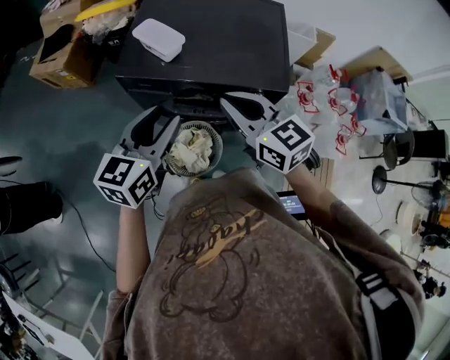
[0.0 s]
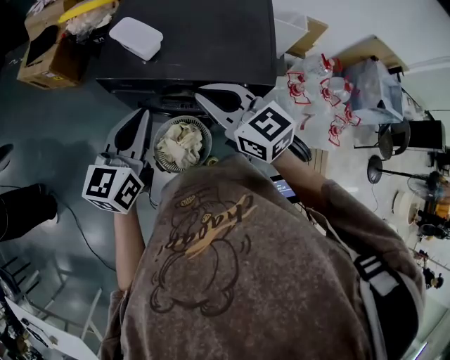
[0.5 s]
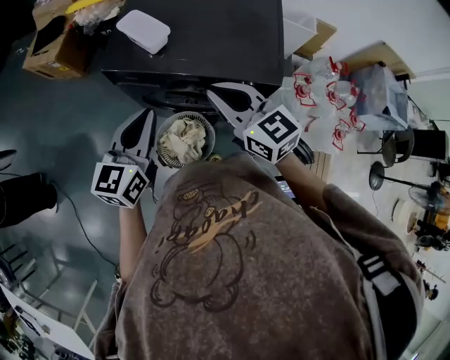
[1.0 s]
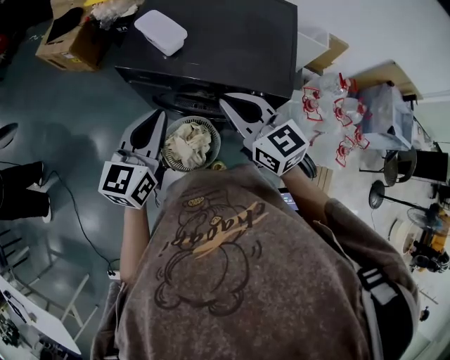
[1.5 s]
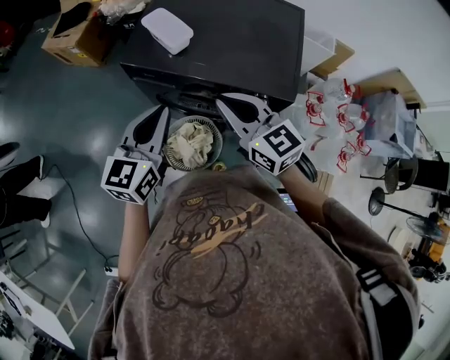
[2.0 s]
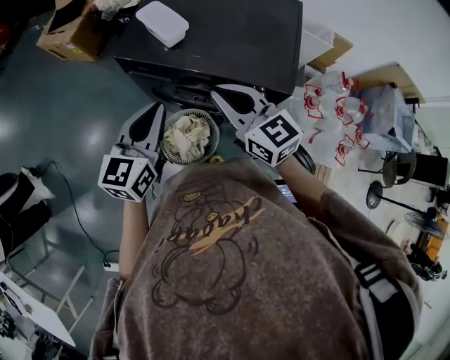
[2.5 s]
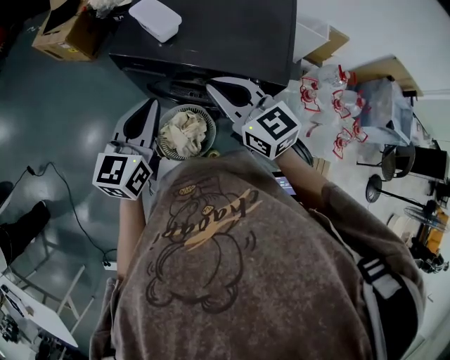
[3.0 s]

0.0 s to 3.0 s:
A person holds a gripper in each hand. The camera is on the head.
0.0 to 1.5 s: The left gripper closes up.
1.5 to 3.0 s: The grippers stay close to where they were, moving slightly.

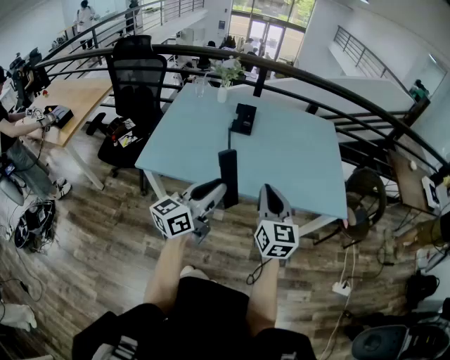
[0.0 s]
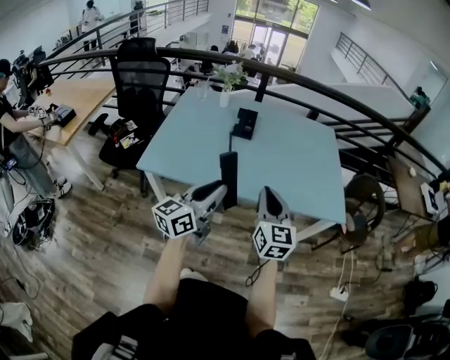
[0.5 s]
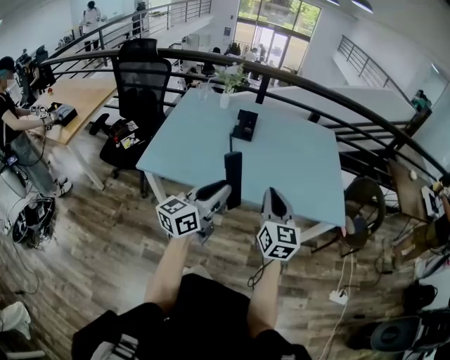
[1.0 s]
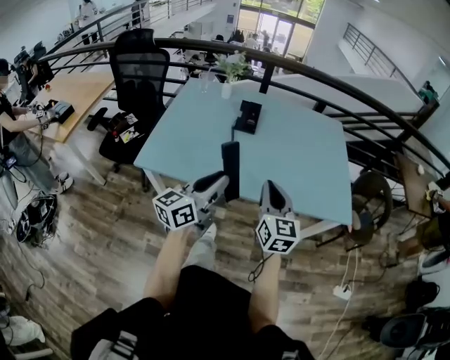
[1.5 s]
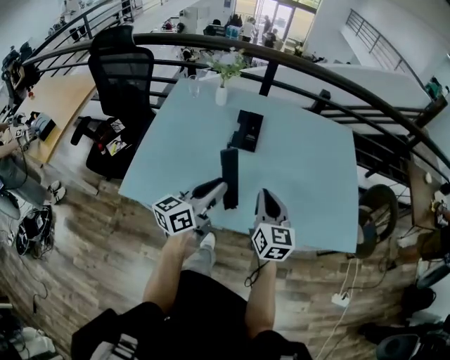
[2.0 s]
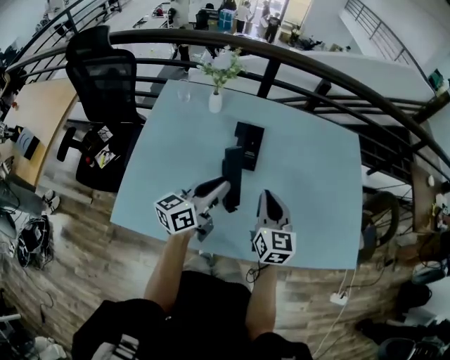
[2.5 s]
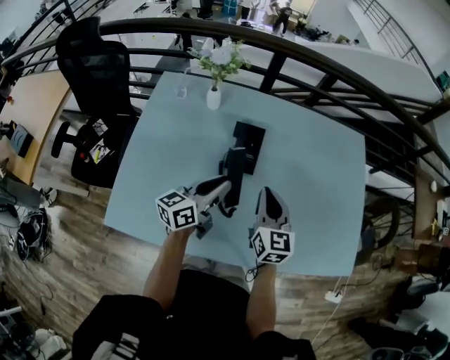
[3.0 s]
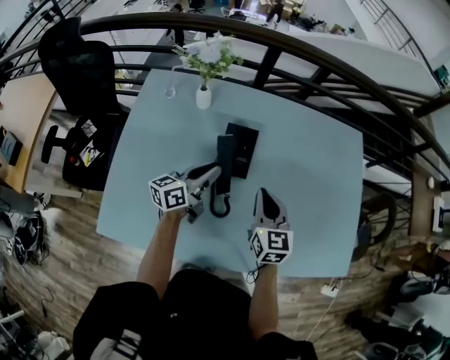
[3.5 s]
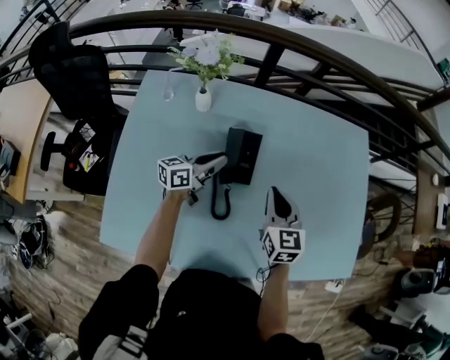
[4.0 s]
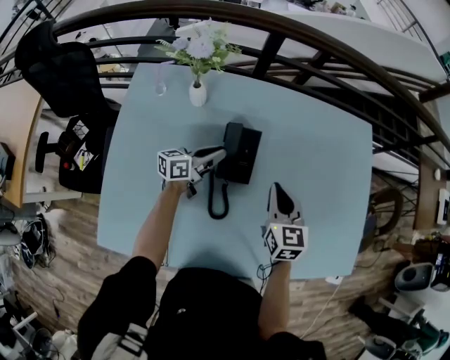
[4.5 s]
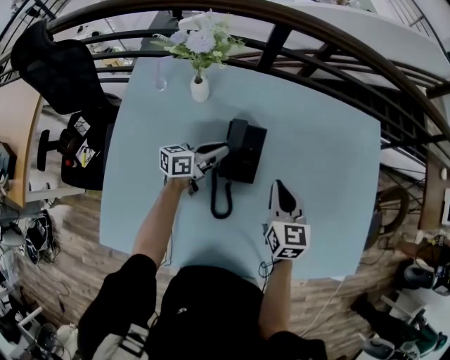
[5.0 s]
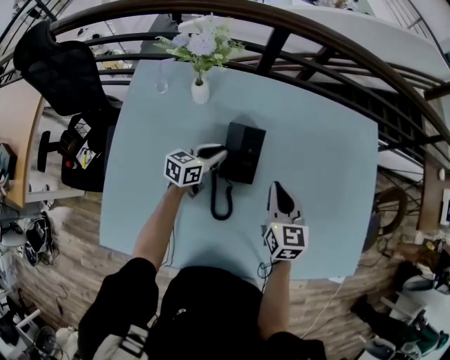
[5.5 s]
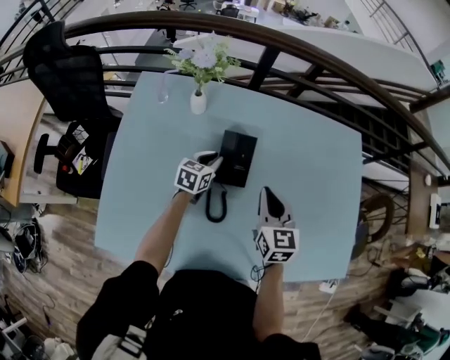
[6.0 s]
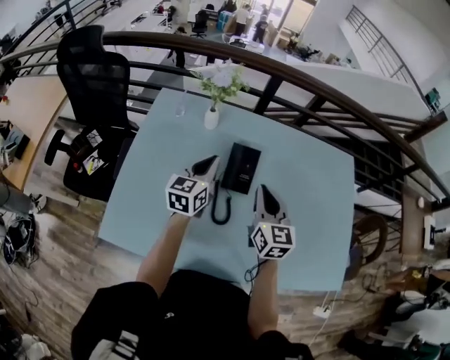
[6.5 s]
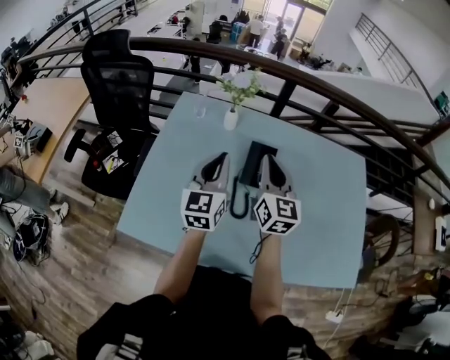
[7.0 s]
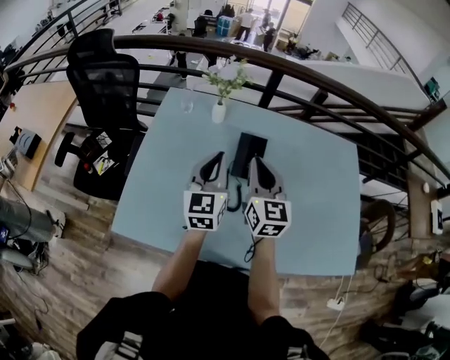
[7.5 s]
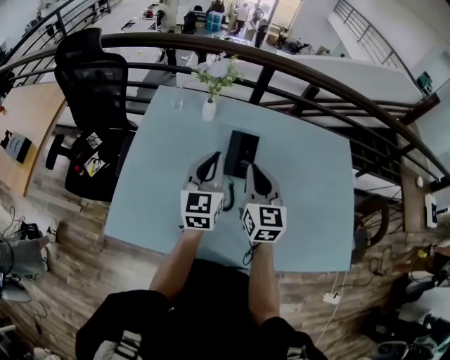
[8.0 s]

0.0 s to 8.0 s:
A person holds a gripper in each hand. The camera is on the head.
0.0 to 2.0 s: The right gripper goes approximately 25 cm forward and downward, while the left gripper shifts some 25 cm forward.
2.0 to 4.0 s: The right gripper moves forward, some 25 cm, while the left gripper is displaced forward and downward by some 35 cm, and rotates about 20 degrees.
4.0 to 6.0 s: The left gripper goes some 10 cm downward, and turns by approximately 40 degrees.
6.0 to 8.0 s: The left gripper travels upward and backward by some 30 cm, and swivels approximately 40 degrees. The right gripper goes some 15 cm upward and to the left.

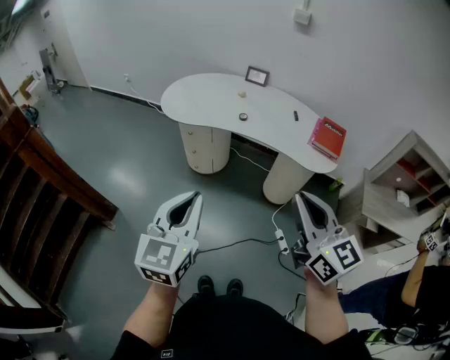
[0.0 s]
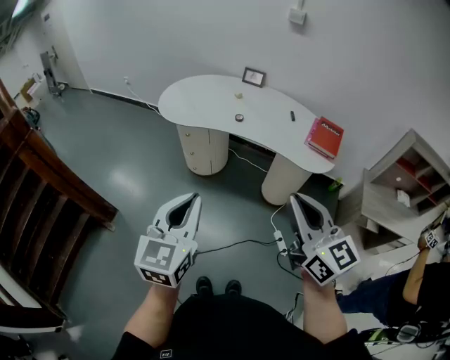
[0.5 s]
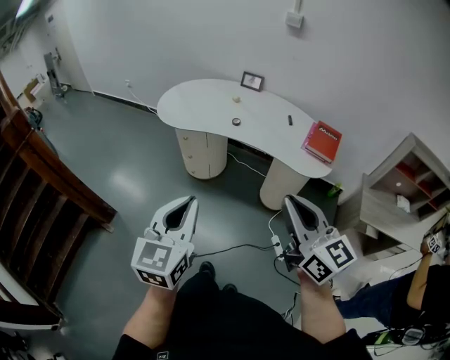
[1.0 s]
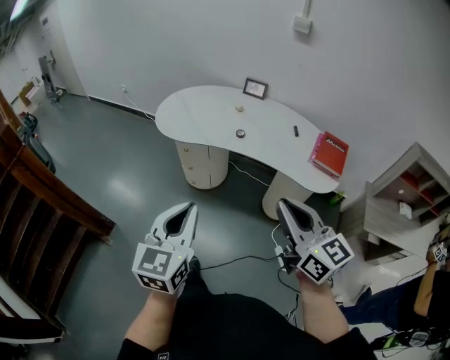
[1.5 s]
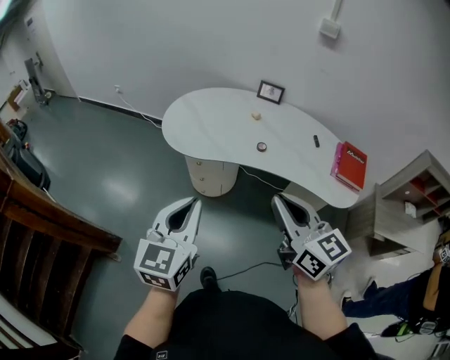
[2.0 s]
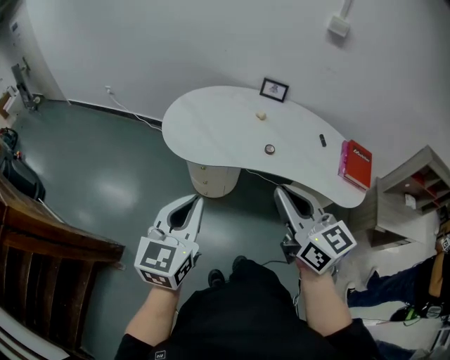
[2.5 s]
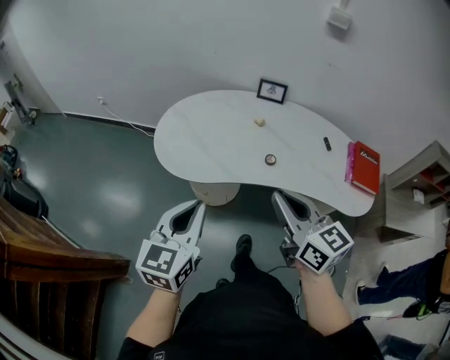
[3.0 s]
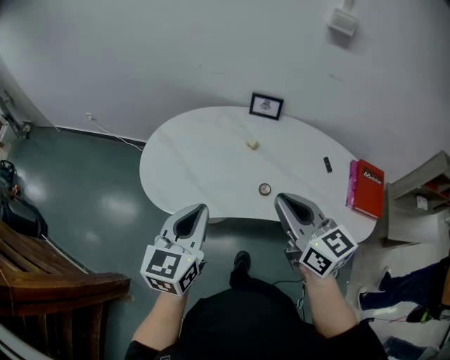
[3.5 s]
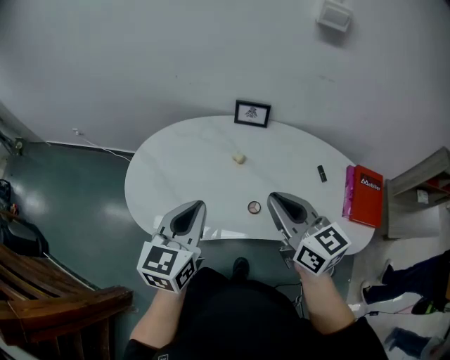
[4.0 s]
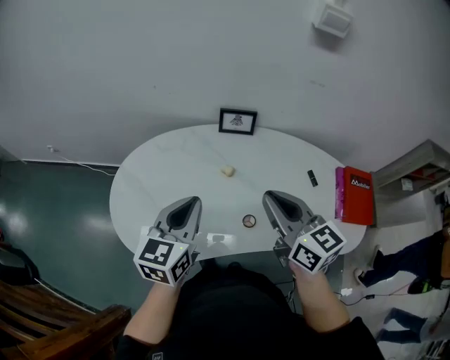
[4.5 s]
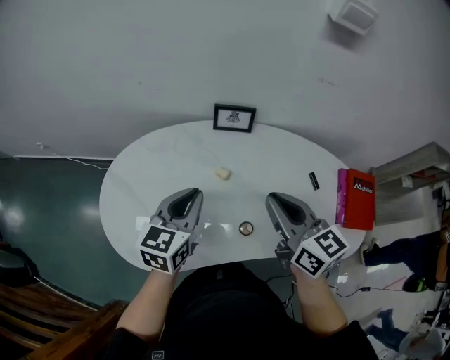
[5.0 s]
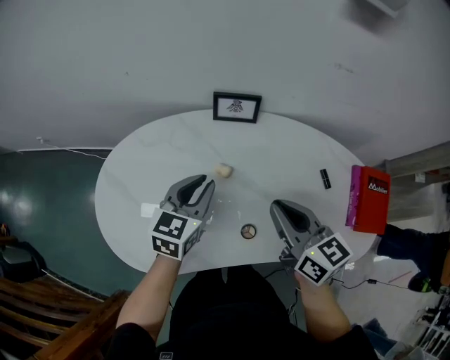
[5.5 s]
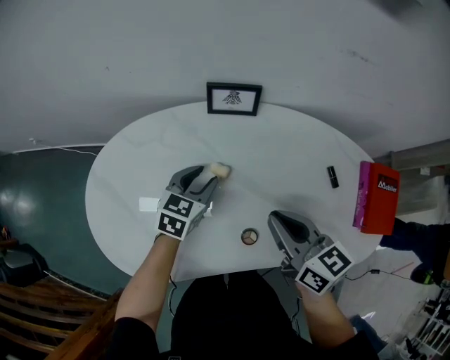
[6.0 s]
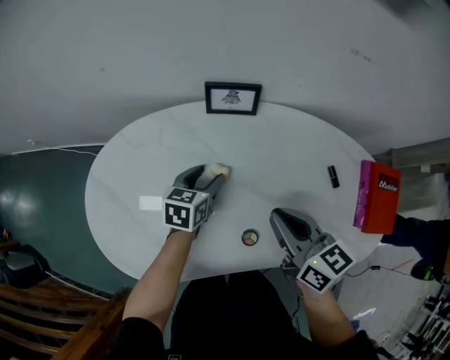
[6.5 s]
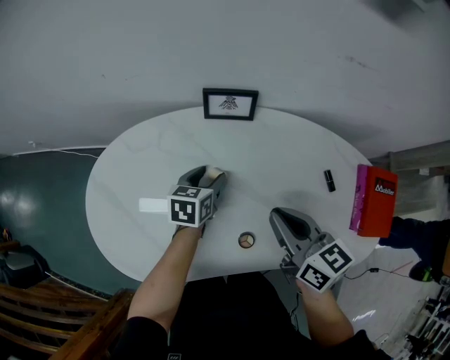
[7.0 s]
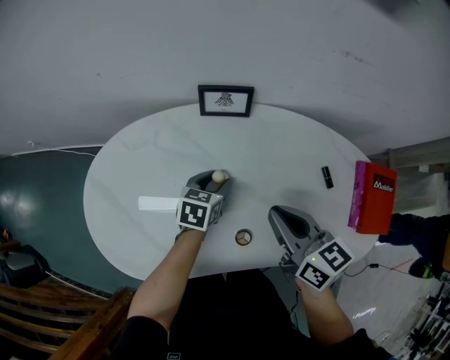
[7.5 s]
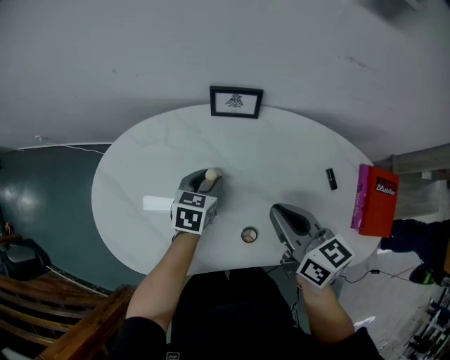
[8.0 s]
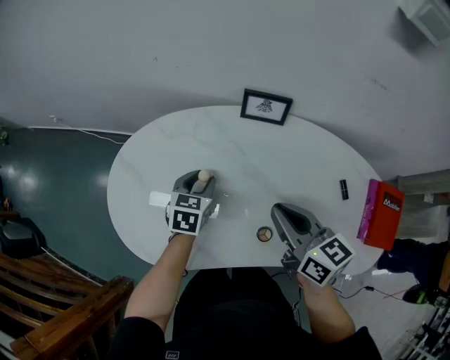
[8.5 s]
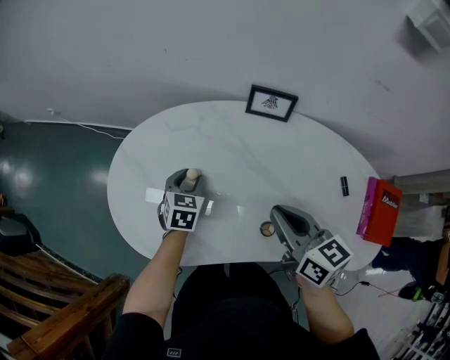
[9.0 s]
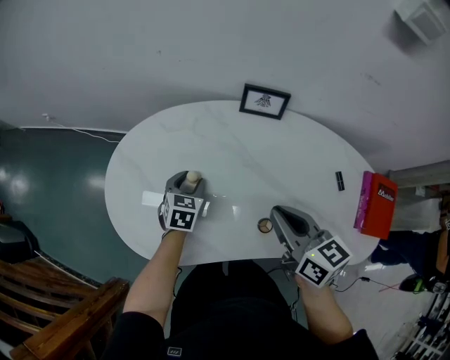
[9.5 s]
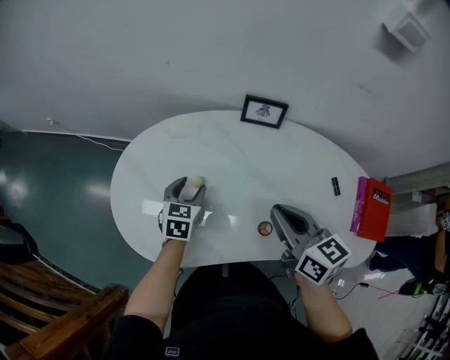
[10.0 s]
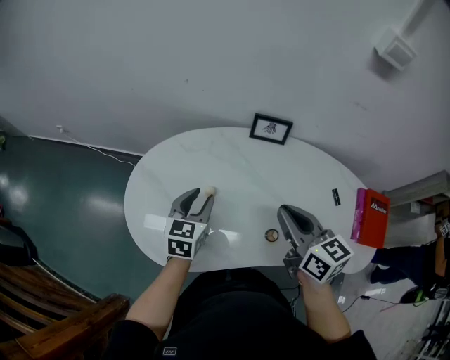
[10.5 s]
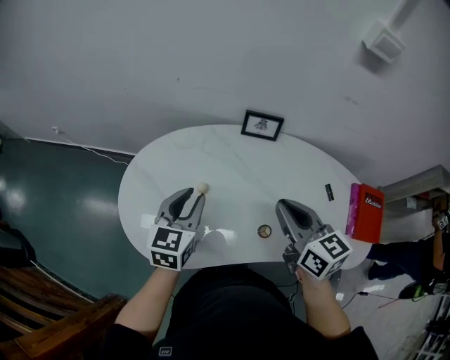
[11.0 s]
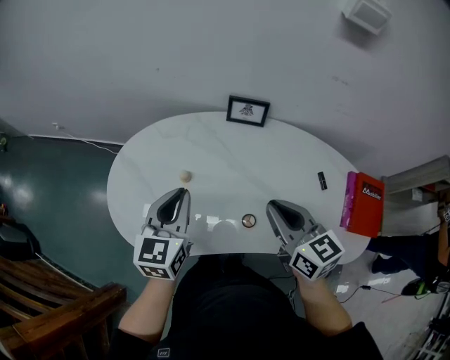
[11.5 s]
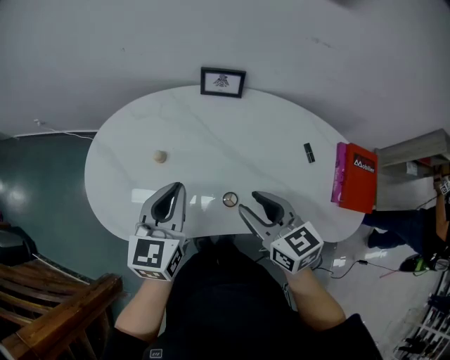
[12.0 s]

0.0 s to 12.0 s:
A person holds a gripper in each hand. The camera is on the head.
0.0 to 2.0 s: The right gripper goes approximately 30 cm forward and to the left; the left gripper is displaced forward by approximately 25 cm.
2.0 to 4.0 s: Both grippers travel together forward, about 40 cm.
4.0 to 6.0 s: The left gripper goes roughly 35 cm forward and downward, swivels about 30 degrees, and opens up; the right gripper shifts some 20 cm downward and forward, and turns by some 20 degrees.
8.0 to 10.0 s: The right gripper goes roughly 10 cm to the left. Meanwhile the left gripper moves to the left, approximately 15 cm.
10.0 to 12.0 s: The left gripper shifts approximately 20 cm upward, backward and to the right, turns by about 20 degrees, and closes its fingers. Meanwhile the right gripper is displaced backward by approximately 10 cm, and opens up.

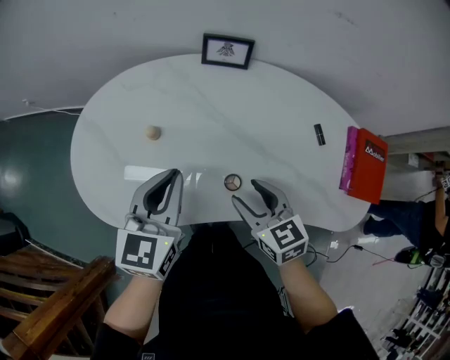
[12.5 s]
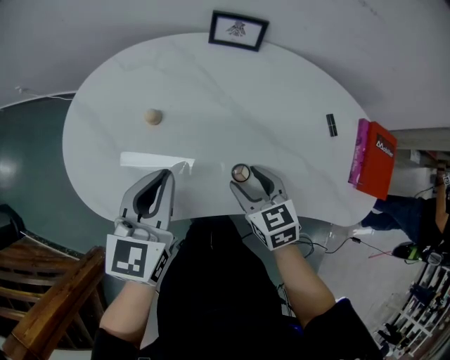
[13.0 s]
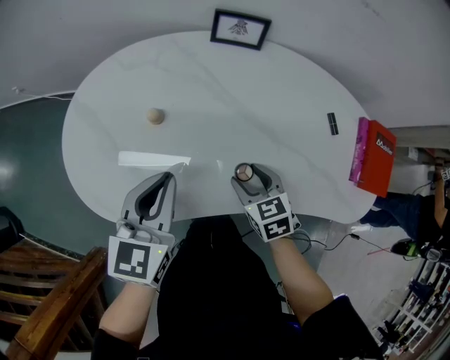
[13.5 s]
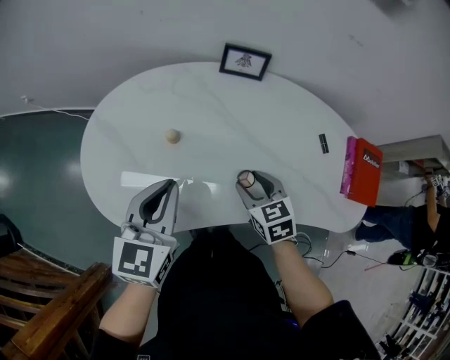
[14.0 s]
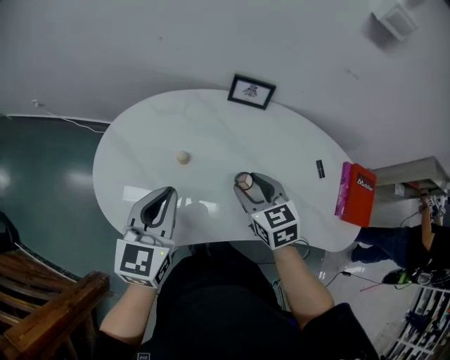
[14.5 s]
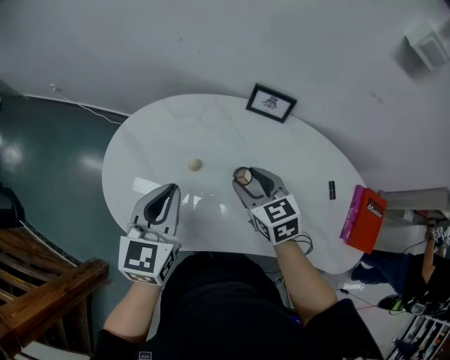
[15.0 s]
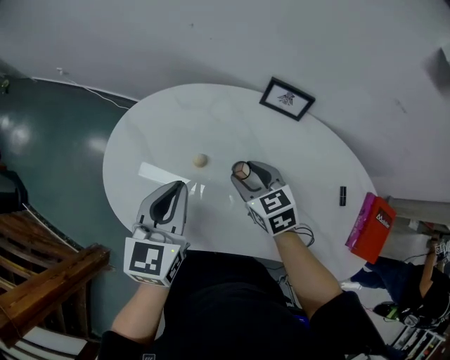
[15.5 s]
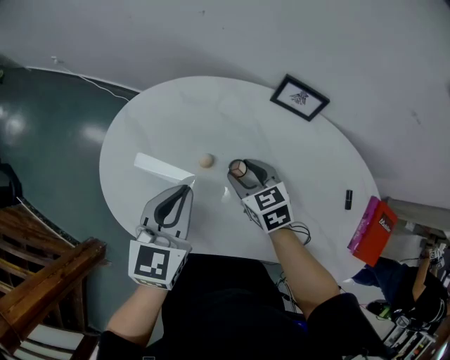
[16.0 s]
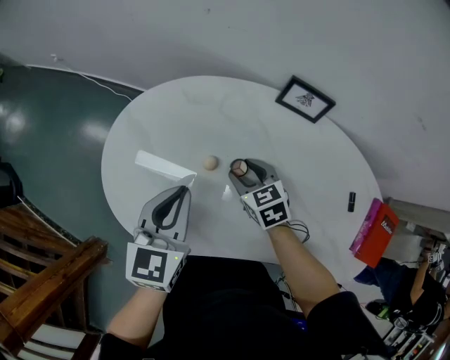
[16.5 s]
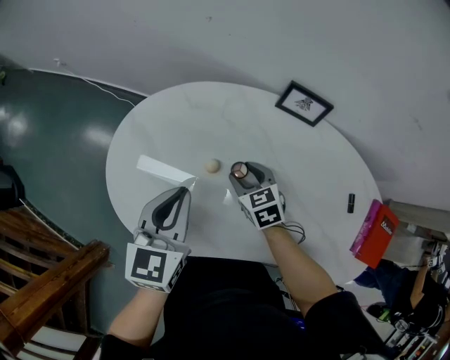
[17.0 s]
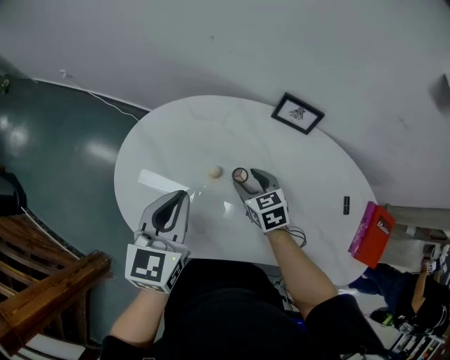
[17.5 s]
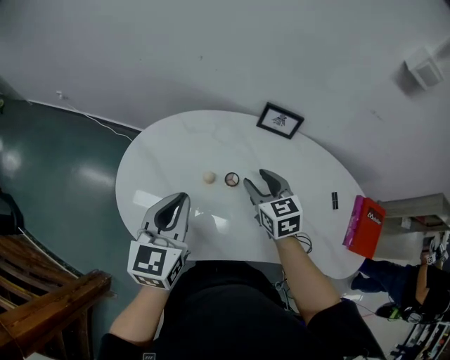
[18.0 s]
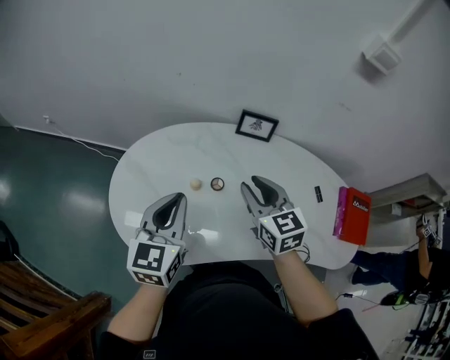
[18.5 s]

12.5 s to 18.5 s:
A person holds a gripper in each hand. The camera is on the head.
12.5 to 14.5 s: The right gripper travels forward and to the left by roughly 10 cm, and travels downward and back again, some 10 cm each way, while the left gripper goes about 10 cm to the left.
14.5 to 16.5 s: The right gripper is displaced downward, forward and to the left by approximately 20 cm; the left gripper goes some 10 cm forward and downward.
16.5 to 18.5 s: The left gripper heads upward, covering approximately 10 cm; the right gripper goes some 20 cm upward, and changes its angle by roughly 30 degrees.
